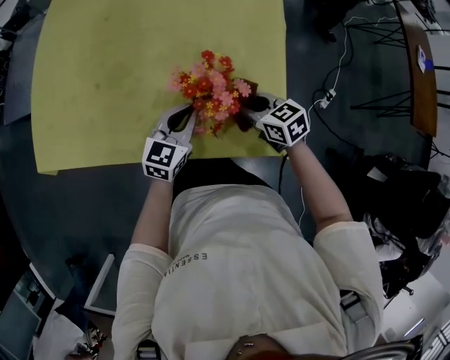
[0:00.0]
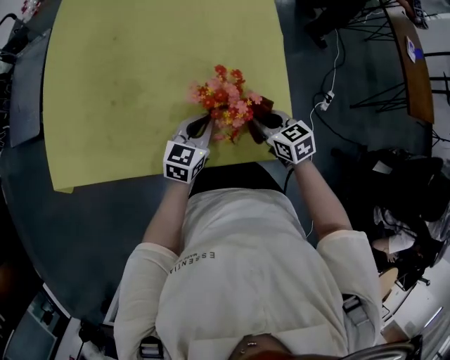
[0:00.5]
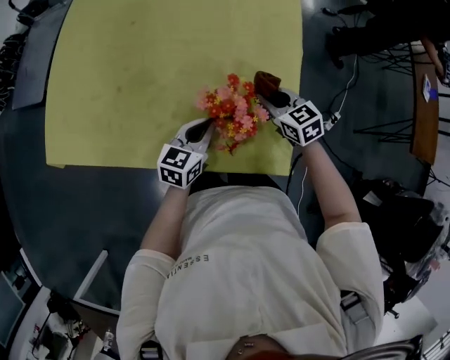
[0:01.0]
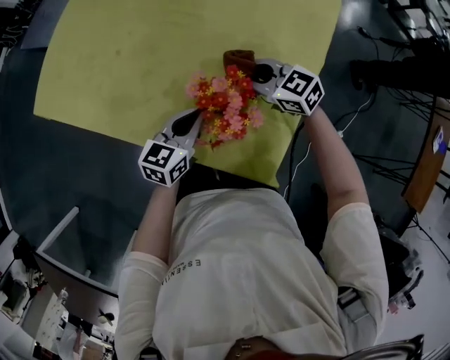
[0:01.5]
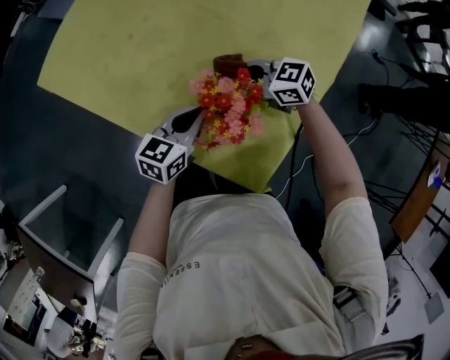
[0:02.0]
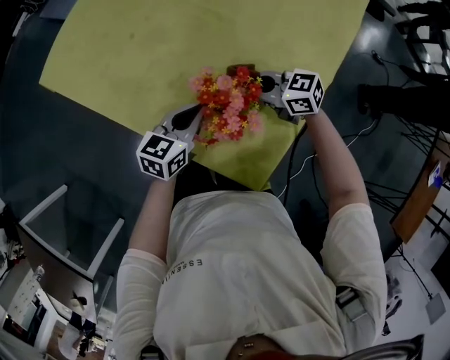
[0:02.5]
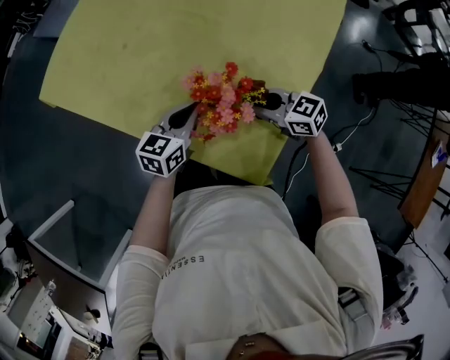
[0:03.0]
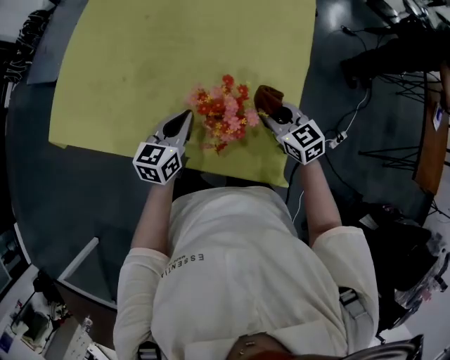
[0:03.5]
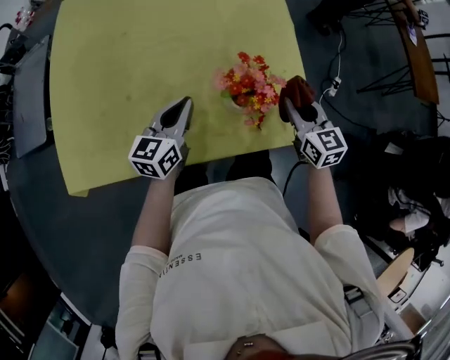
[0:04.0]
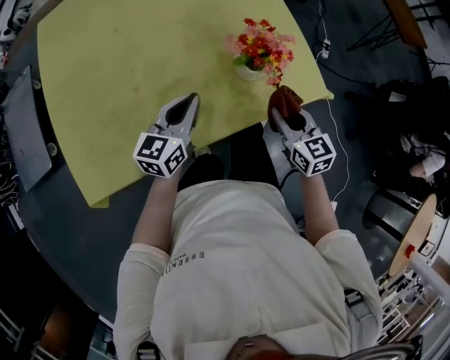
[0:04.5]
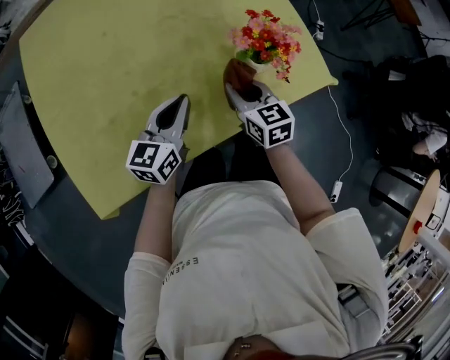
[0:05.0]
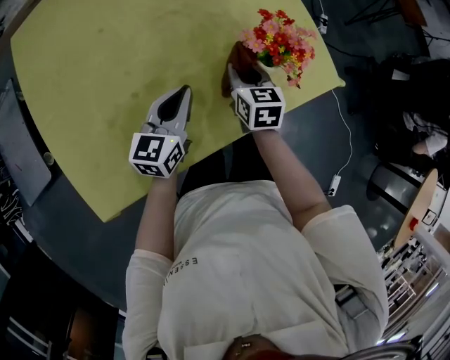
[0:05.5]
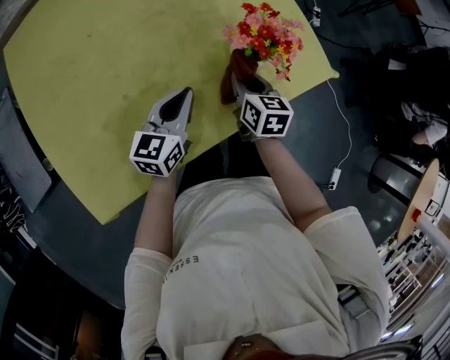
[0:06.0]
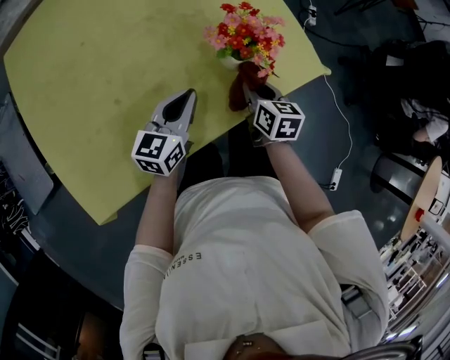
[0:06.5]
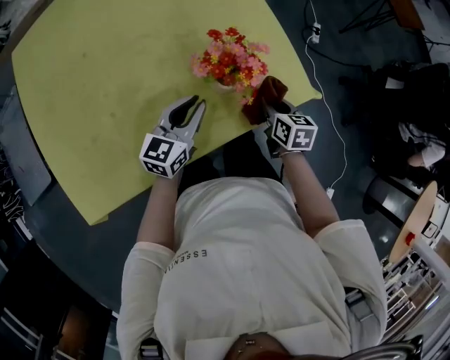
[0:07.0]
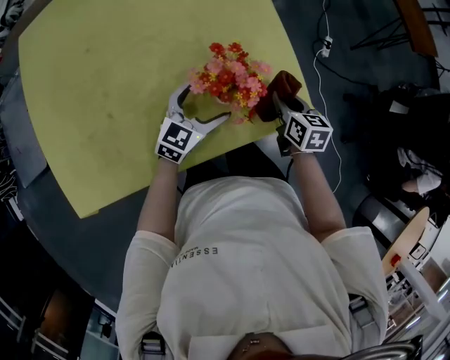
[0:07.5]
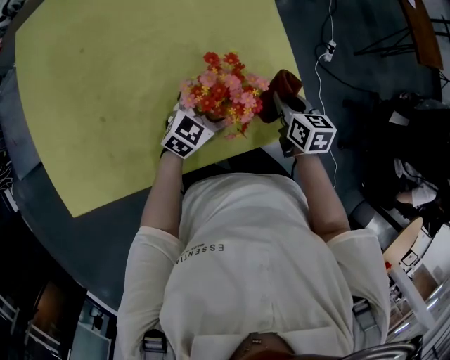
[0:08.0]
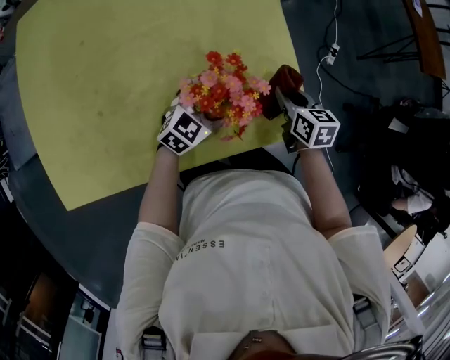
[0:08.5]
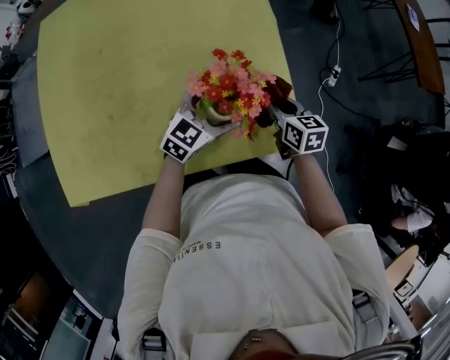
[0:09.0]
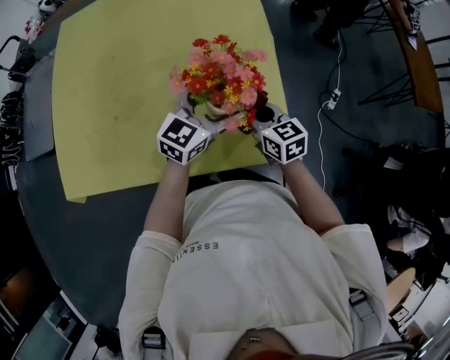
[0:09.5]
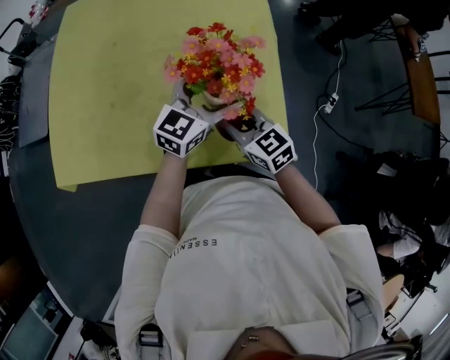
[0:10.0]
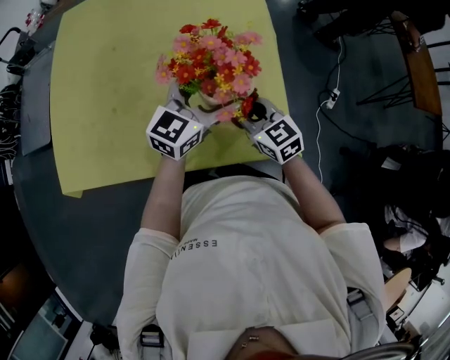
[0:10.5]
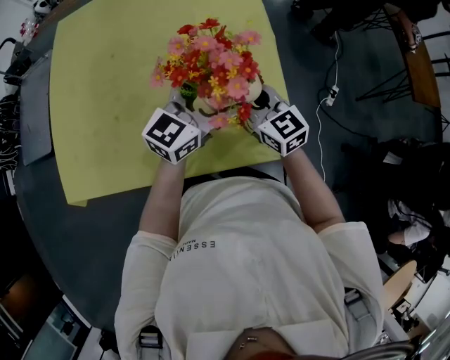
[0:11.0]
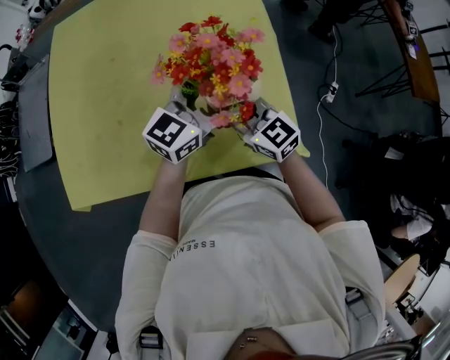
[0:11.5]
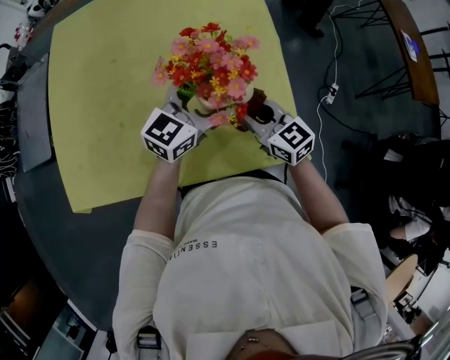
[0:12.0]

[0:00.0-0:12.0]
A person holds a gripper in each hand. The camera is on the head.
0:00.0 to 0:02.0: The left gripper rotates some 30 degrees. Meanwhile the right gripper shifts by roughly 15 cm, and swivels some 60 degrees.
0:02.0 to 0:04.0: The left gripper ends up about 15 cm from where it was, and changes its angle by roughly 30 degrees; the right gripper ends up some 20 cm from where it was, and rotates some 90 degrees.
0:04.0 to 0:06.0: The right gripper heads to the left, downward and backward, covering some 20 cm, and rotates about 40 degrees. Meanwhile the left gripper travels downward by about 5 cm, and rotates approximately 20 degrees.
0:06.0 to 0:08.0: The two grippers go some 20 cm to the right and forward. The left gripper rotates approximately 30 degrees, and opens up.
0:08.0 to 0:10.0: The right gripper moves about 15 cm, and swivels some 50 degrees. Meanwhile the left gripper shifts roughly 20 cm upward, and changes its angle by approximately 30 degrees.

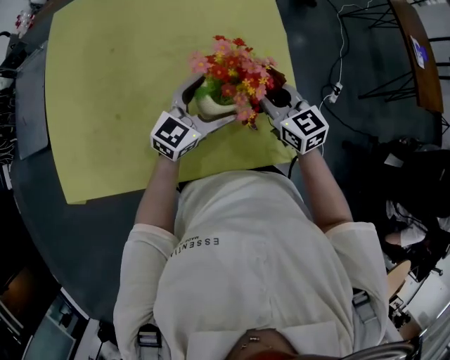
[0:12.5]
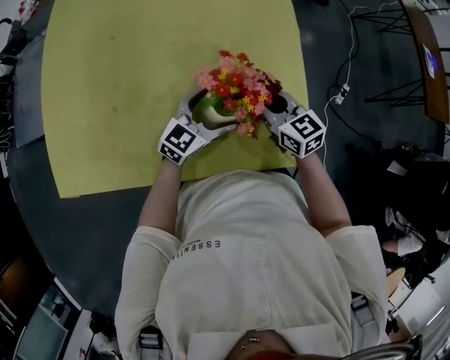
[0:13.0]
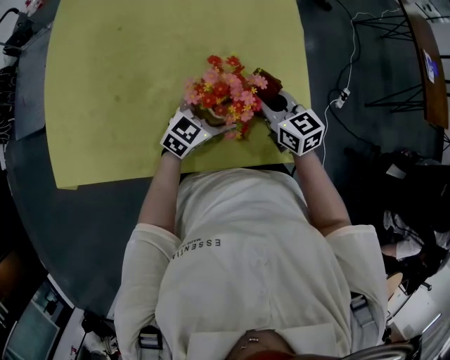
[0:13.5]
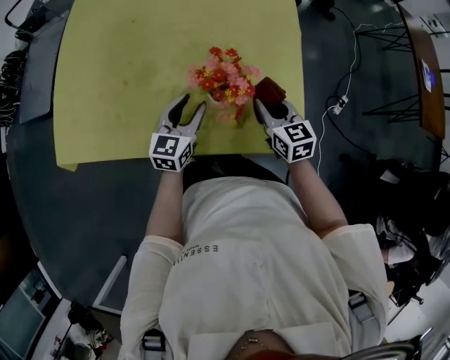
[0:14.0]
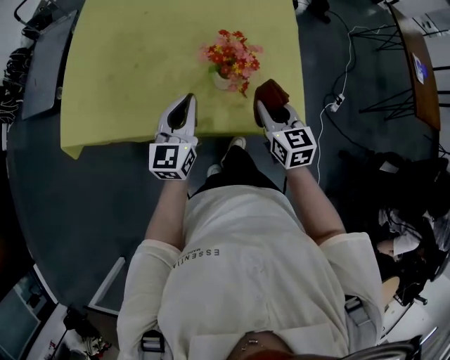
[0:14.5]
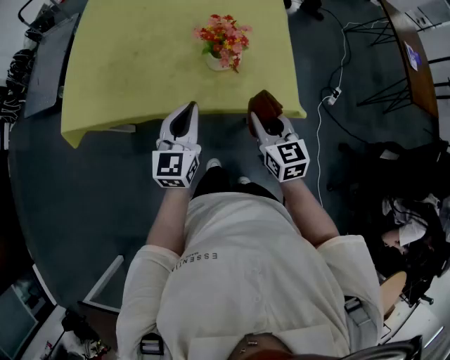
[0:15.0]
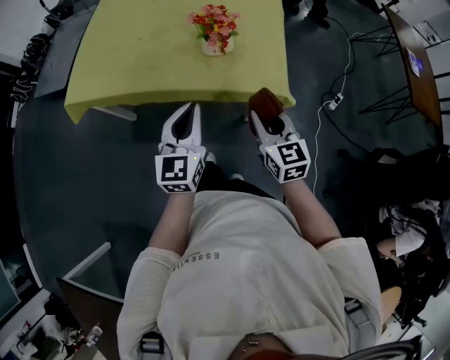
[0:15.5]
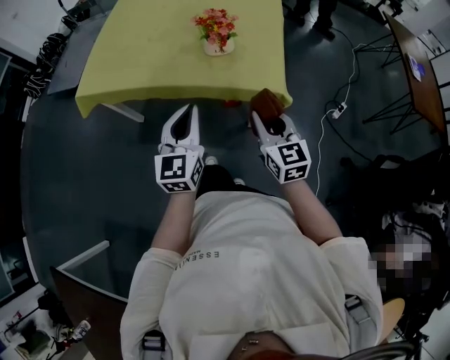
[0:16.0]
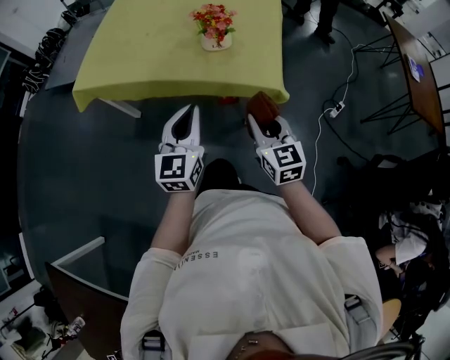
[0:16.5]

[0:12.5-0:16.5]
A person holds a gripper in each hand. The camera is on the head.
0:12.5 to 0:14.5: The right gripper travels backward by some 15 cm. The left gripper travels backward and to the left by approximately 20 cm, changes its angle by some 40 degrees, and closes.
0:14.5 to 0:16.5: Both grippers move backward, approximately 25 cm.

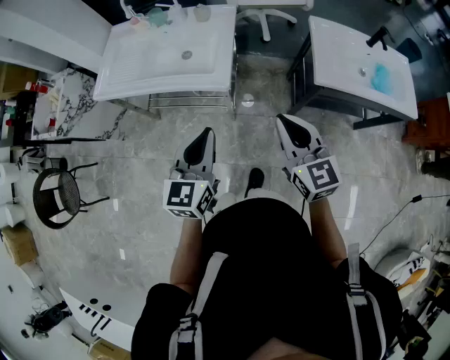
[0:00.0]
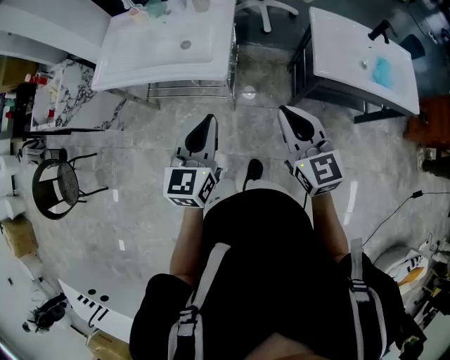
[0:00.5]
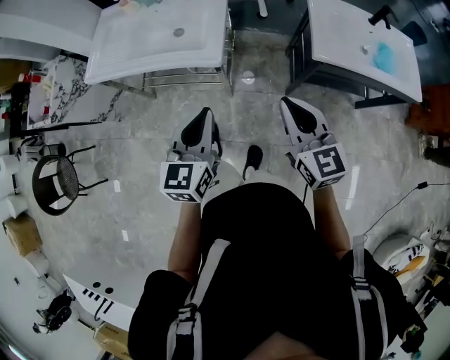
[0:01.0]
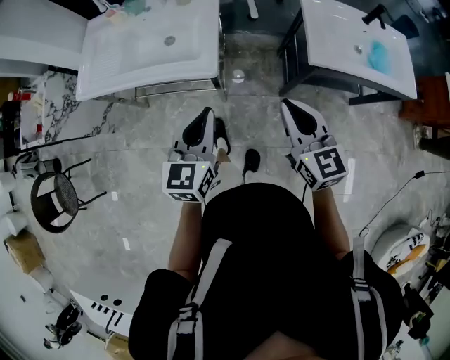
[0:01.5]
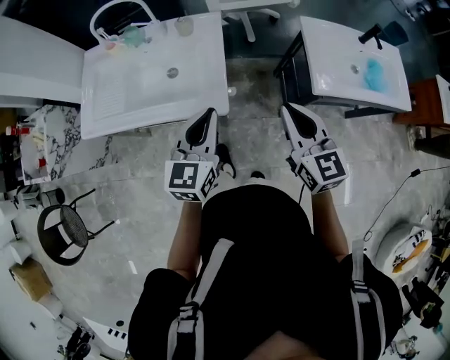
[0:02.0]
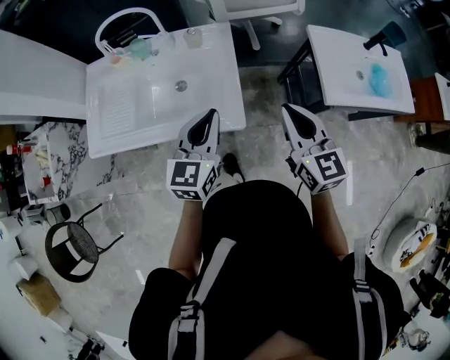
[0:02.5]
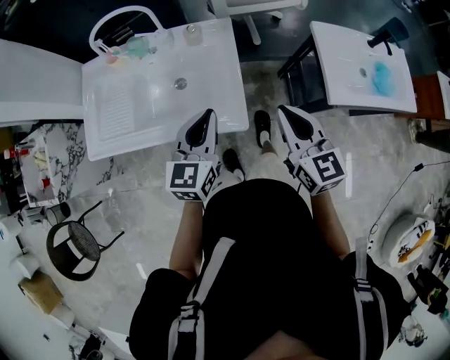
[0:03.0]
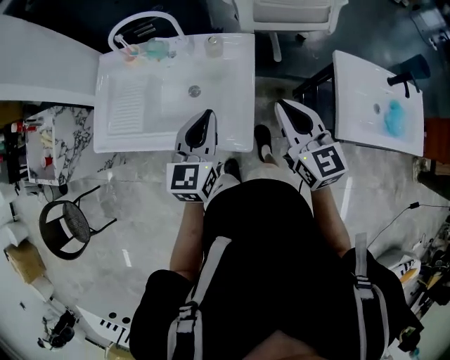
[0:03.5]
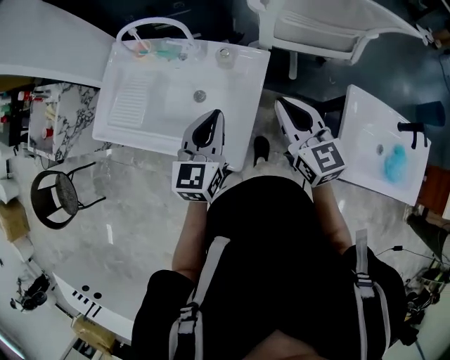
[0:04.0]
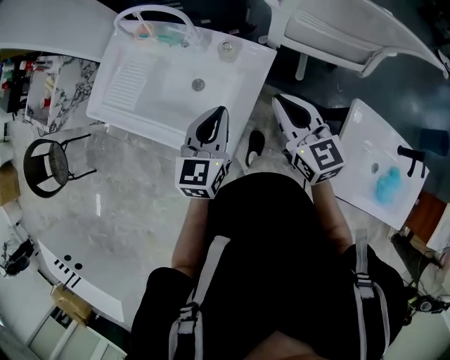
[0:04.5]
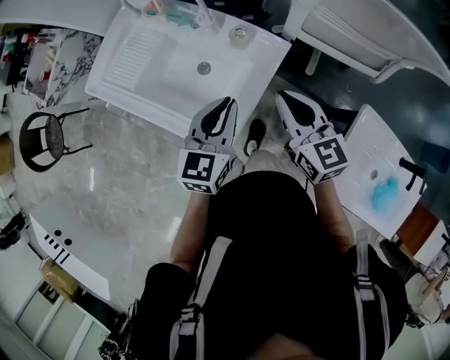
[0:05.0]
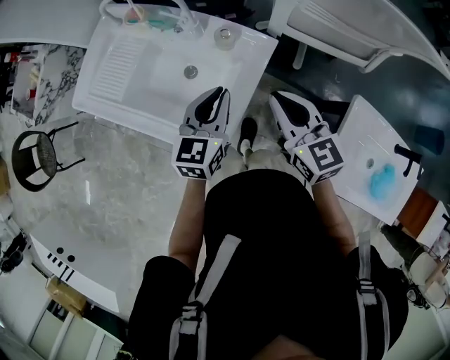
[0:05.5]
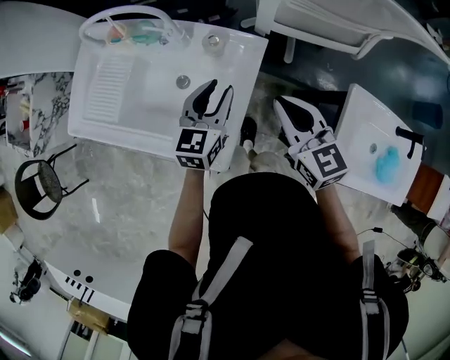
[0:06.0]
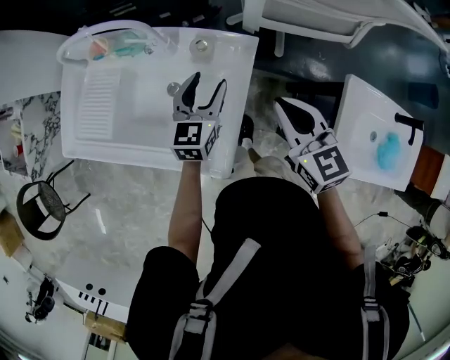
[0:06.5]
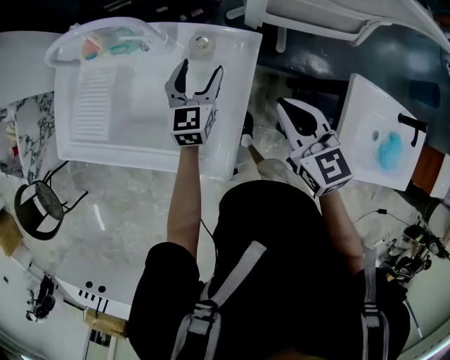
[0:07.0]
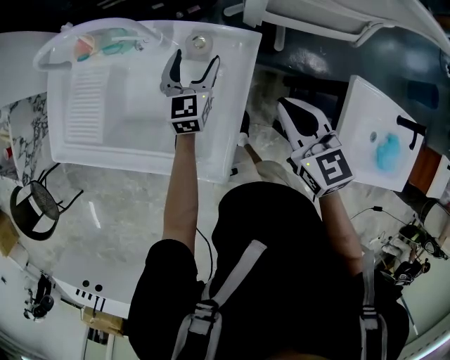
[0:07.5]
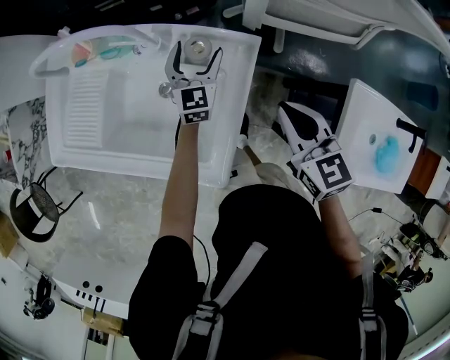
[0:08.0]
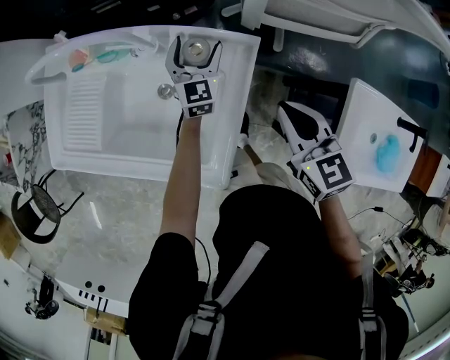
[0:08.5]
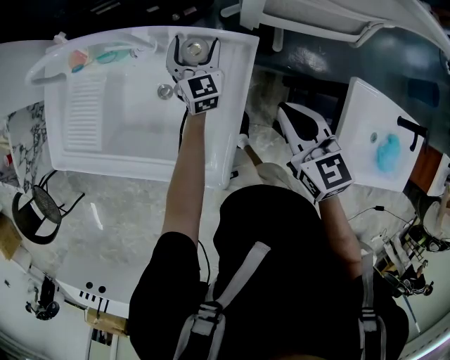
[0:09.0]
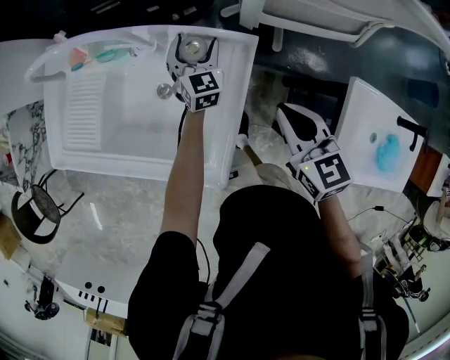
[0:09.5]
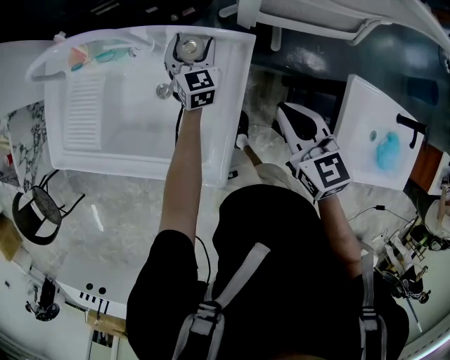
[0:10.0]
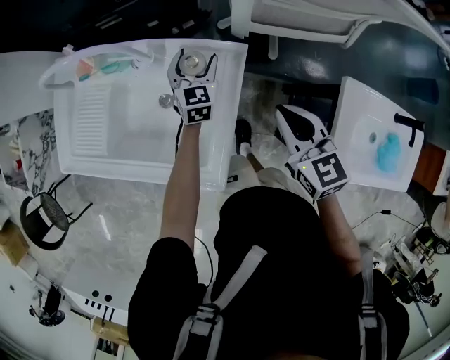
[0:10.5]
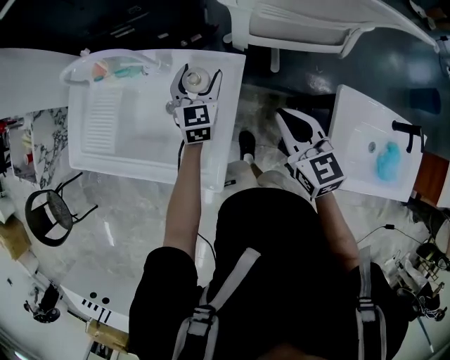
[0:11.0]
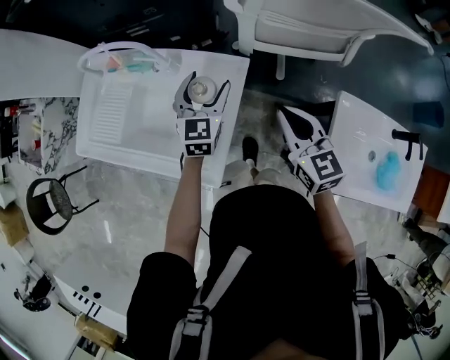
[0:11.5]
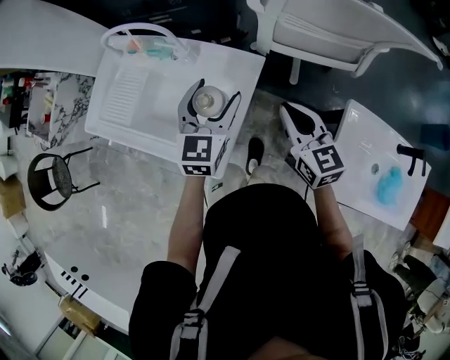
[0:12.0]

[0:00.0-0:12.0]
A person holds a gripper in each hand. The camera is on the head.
0:00.0 to 0:02.0: The two grippers go approximately 15 cm forward.
0:02.0 to 0:04.0: Both grippers move forward, some 25 cm. The right gripper swivels some 20 degrees.
0:04.0 to 0:06.0: The right gripper moves downward, about 5 cm. Meanwhile the left gripper moves downward, forward and to the right, about 15 cm.
0:06.0 to 0:08.0: The left gripper goes about 20 cm forward and downward, and opens its fingers. Meanwhile the right gripper is displaced downward by roughly 5 cm.
0:08.0 to 0:10.0: The grippers move only a little.
0:10.0 to 0:12.0: The left gripper heads upward and backward, covering roughly 30 cm, while the right gripper shifts about 5 cm upward.
